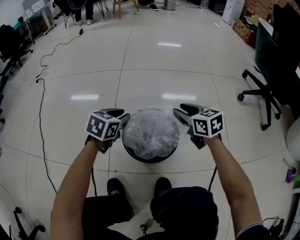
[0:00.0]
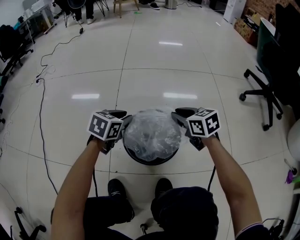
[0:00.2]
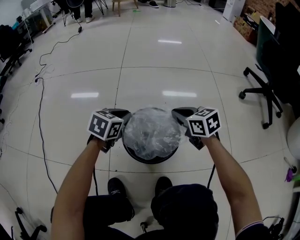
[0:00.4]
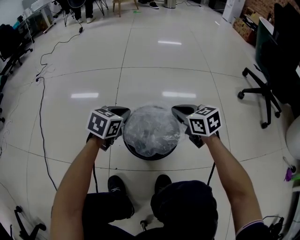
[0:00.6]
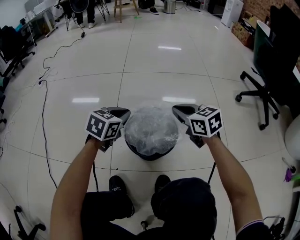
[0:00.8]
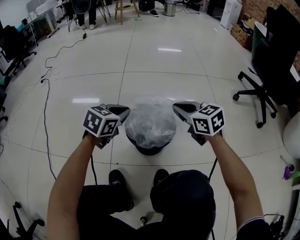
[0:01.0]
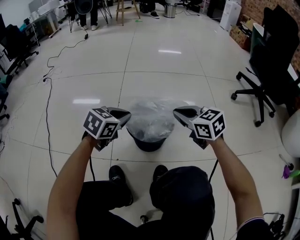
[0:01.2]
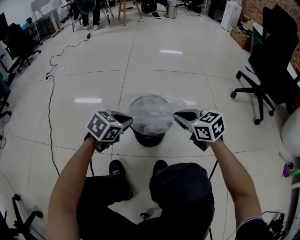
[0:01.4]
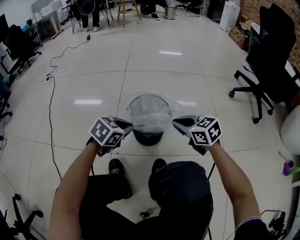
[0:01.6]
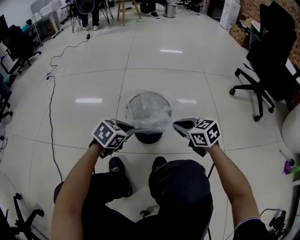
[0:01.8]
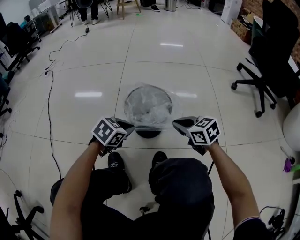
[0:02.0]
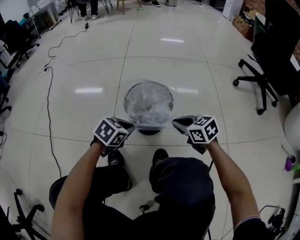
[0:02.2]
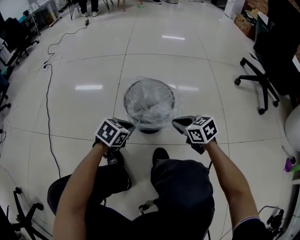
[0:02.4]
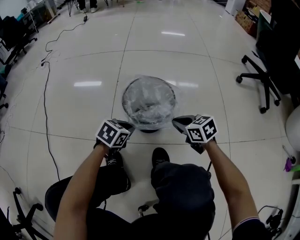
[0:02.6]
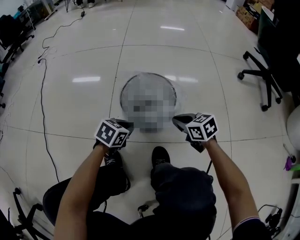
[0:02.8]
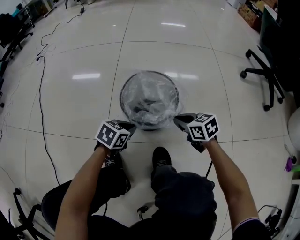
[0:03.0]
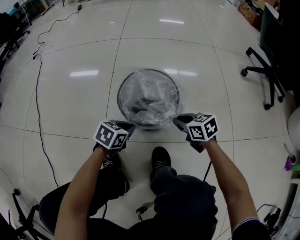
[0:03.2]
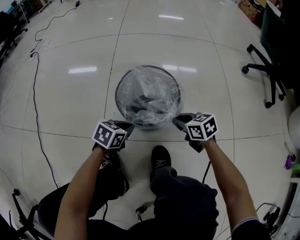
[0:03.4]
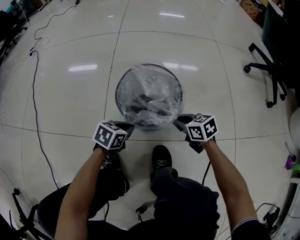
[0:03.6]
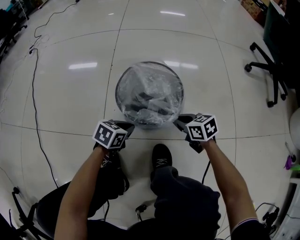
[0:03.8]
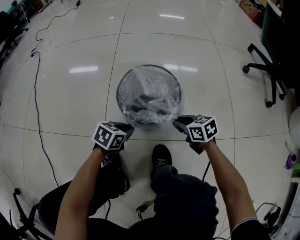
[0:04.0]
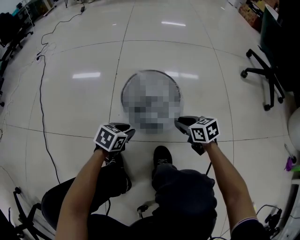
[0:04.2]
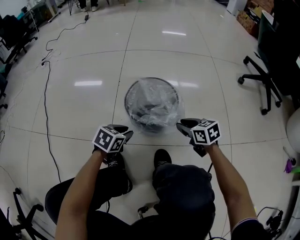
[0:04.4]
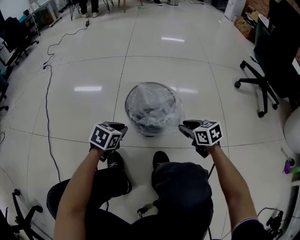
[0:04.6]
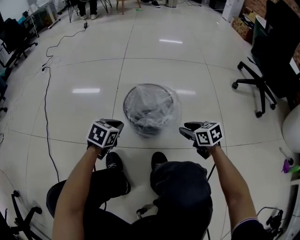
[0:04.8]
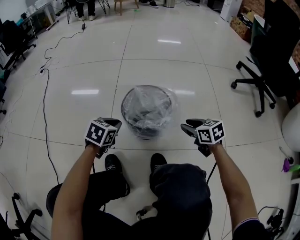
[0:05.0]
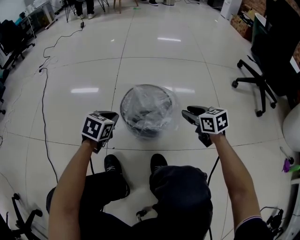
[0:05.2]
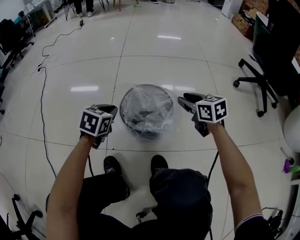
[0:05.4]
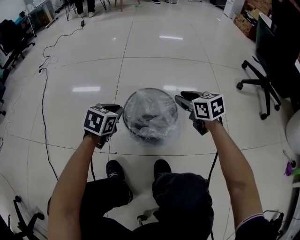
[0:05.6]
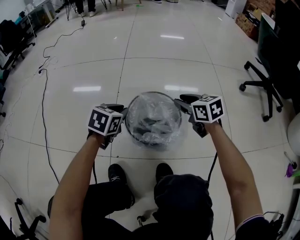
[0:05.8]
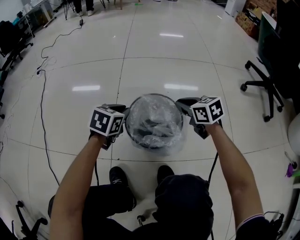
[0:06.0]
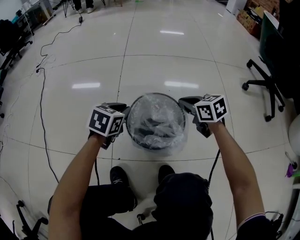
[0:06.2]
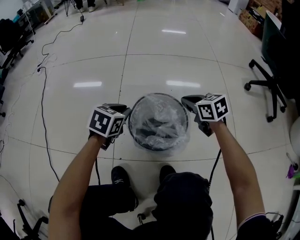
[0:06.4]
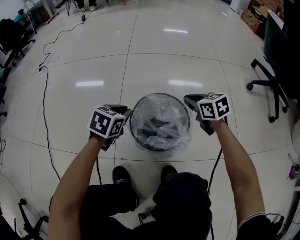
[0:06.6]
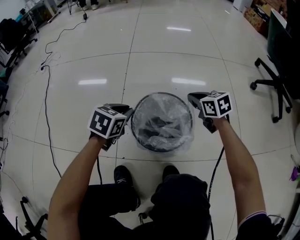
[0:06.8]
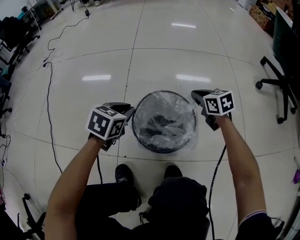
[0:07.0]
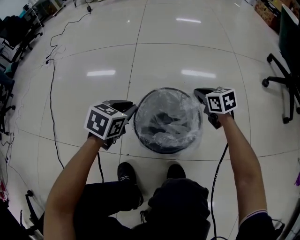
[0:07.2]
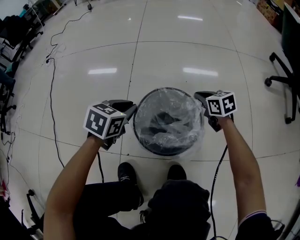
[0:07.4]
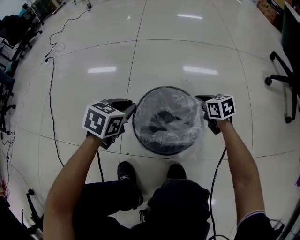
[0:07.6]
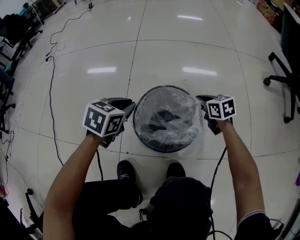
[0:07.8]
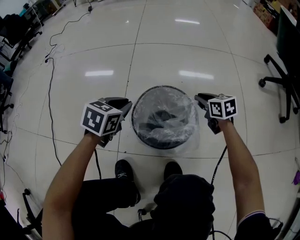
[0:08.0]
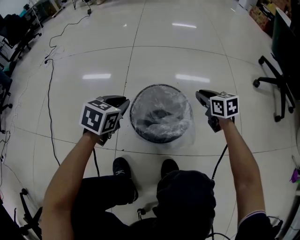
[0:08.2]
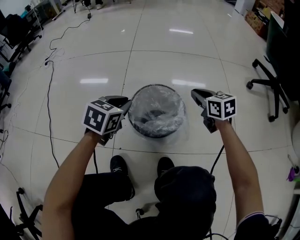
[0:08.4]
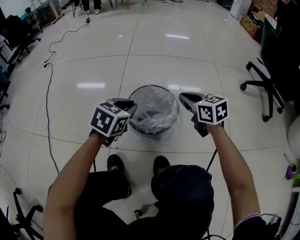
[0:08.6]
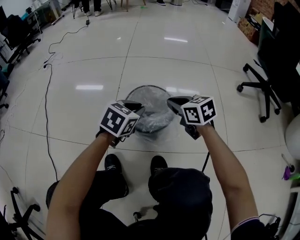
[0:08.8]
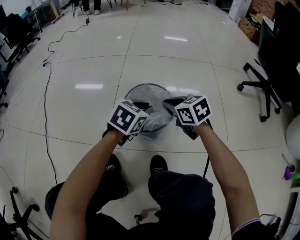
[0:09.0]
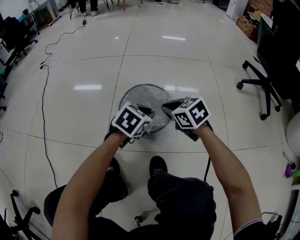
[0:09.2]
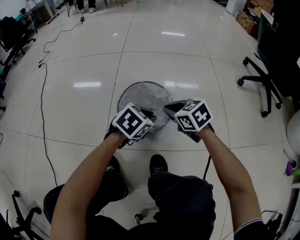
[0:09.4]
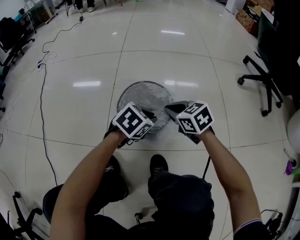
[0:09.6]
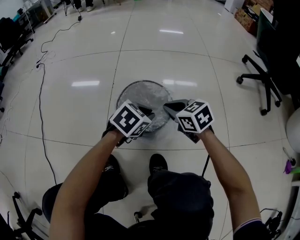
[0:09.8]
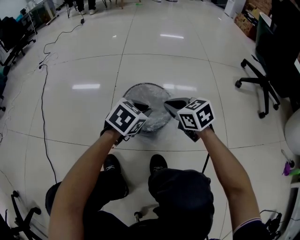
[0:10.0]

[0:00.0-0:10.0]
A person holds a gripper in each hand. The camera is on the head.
0:00.0 to 0:01.4: Both grippers travel together backward, roughly 15 cm. The left gripper closes its fingers. Meanwhile the right gripper closes.
0:01.4 to 0:02.8: The grippers both shift downward by some 15 cm.
0:02.8 to 0:04.2: The left gripper opens up; the right gripper opens its fingers.
0:04.2 to 0:05.8: The two grippers go roughly 20 cm forward and upward.
0:05.8 to 0:07.2: The right gripper moves downward and forward, some 10 cm, and closes its fingers.
0:07.2 to 0:08.6: The right gripper is displaced upward and backward by some 15 cm; the left gripper shifts some 10 cm backward, upward and to the right.
0:08.6 to 0:10.0: The right gripper moves roughly 5 cm. The left gripper shifts approximately 10 cm to the right.

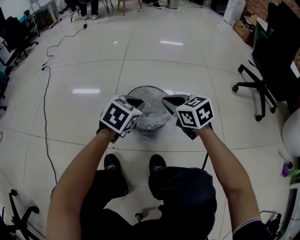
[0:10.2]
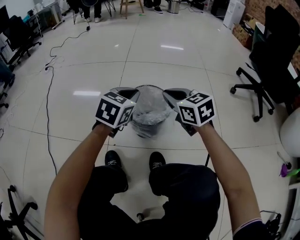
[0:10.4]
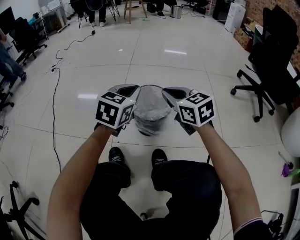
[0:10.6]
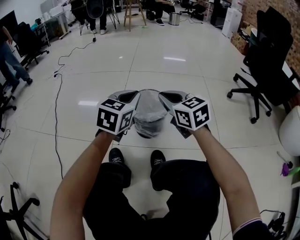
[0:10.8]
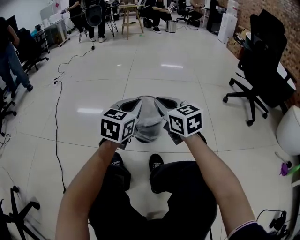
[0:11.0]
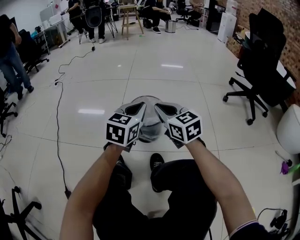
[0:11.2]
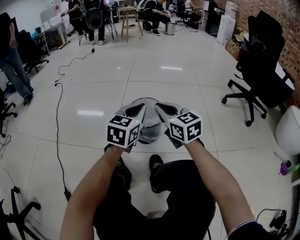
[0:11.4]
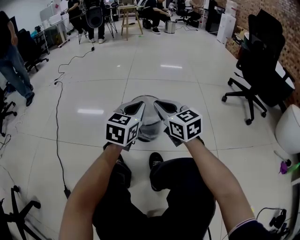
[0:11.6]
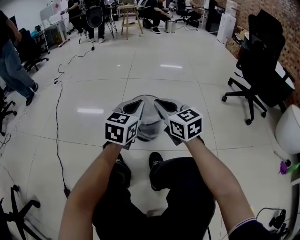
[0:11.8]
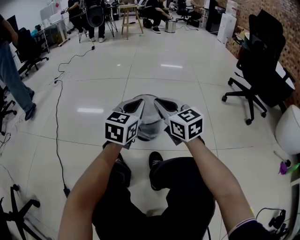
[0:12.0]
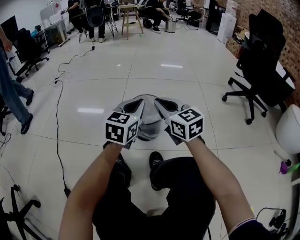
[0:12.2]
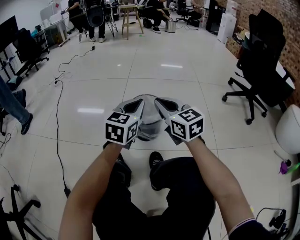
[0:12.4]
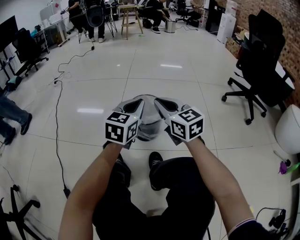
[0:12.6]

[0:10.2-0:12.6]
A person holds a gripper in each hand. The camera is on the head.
0:10.2 to 0:11.4: Both grippers move upward and backward, approximately 20 cm. The left gripper rotates roughly 30 degrees; the right gripper changes its angle by roughly 20 degrees.
0:11.4 to 0:12.6: The grippers make only small movements.

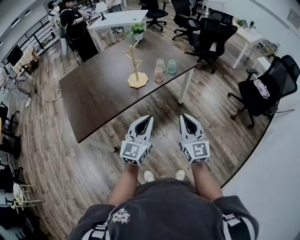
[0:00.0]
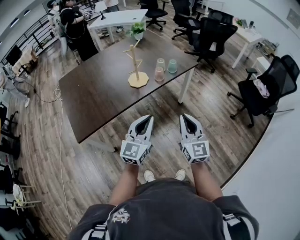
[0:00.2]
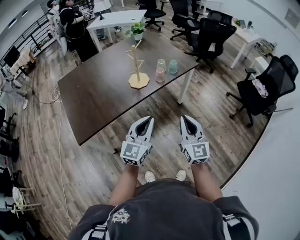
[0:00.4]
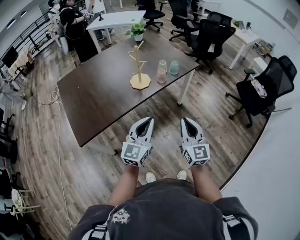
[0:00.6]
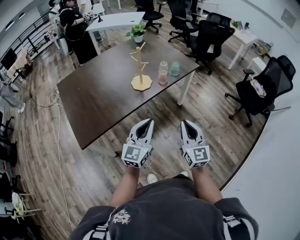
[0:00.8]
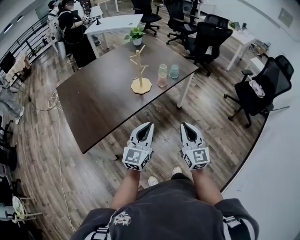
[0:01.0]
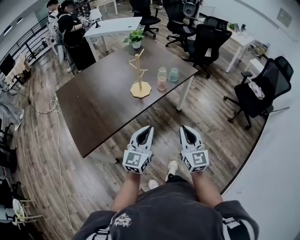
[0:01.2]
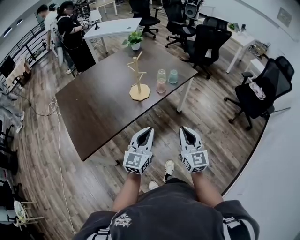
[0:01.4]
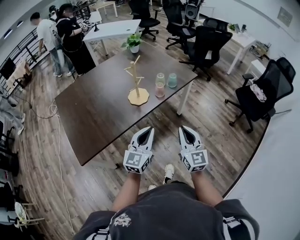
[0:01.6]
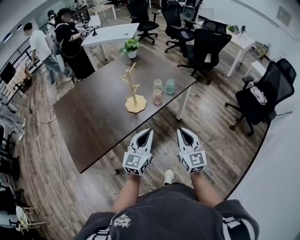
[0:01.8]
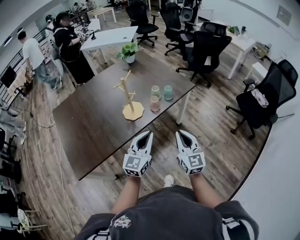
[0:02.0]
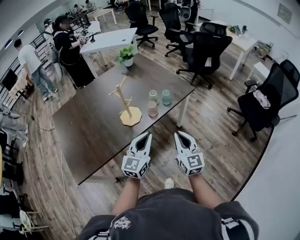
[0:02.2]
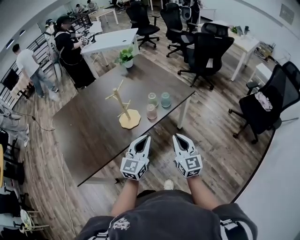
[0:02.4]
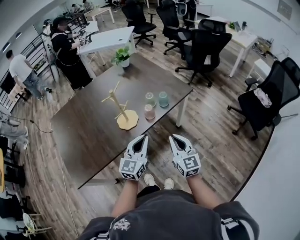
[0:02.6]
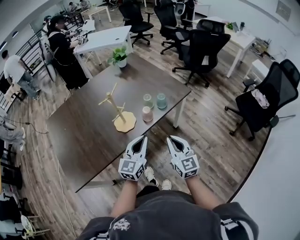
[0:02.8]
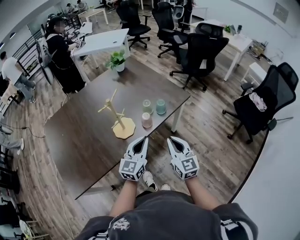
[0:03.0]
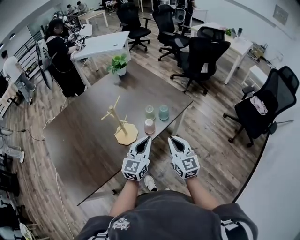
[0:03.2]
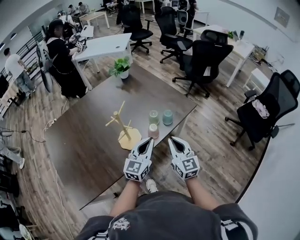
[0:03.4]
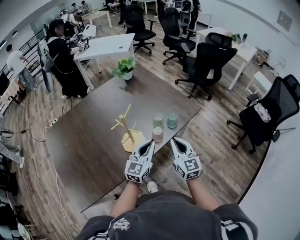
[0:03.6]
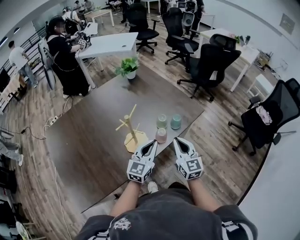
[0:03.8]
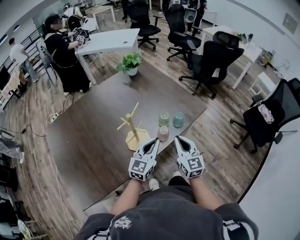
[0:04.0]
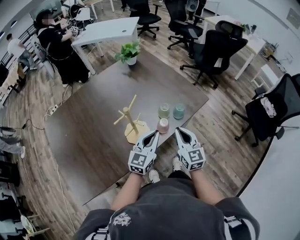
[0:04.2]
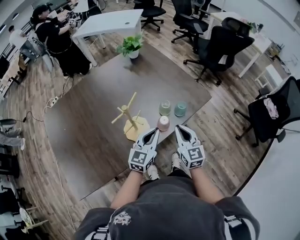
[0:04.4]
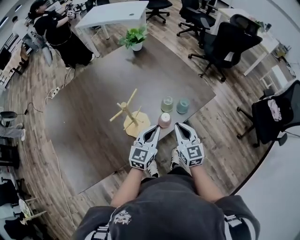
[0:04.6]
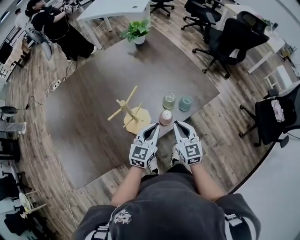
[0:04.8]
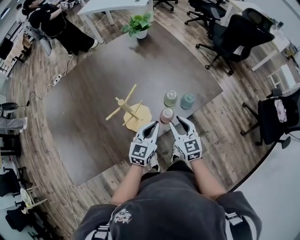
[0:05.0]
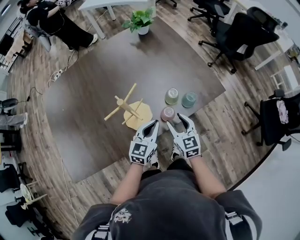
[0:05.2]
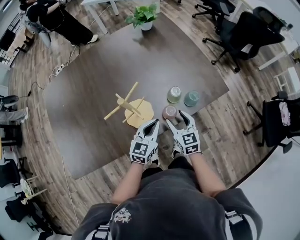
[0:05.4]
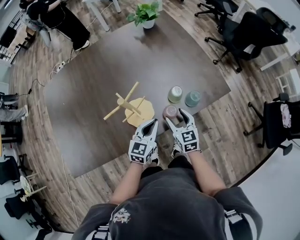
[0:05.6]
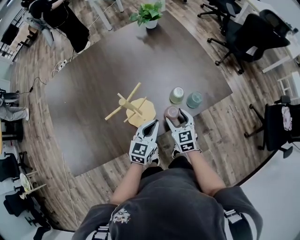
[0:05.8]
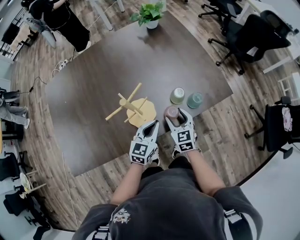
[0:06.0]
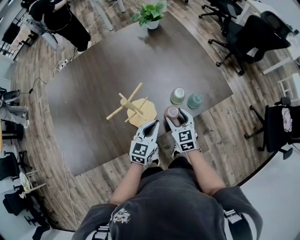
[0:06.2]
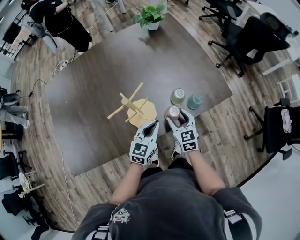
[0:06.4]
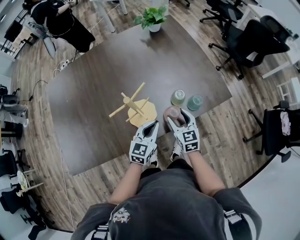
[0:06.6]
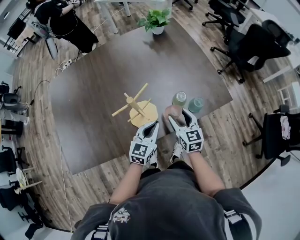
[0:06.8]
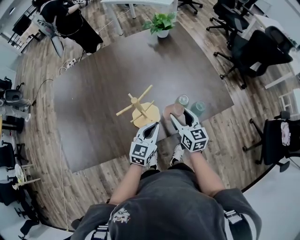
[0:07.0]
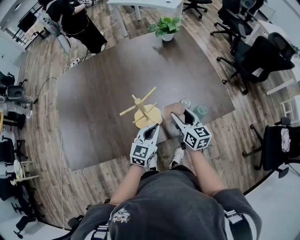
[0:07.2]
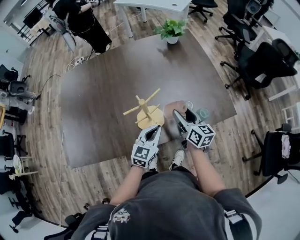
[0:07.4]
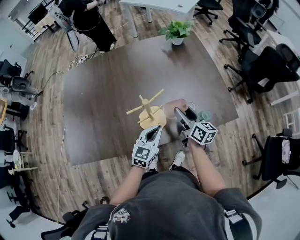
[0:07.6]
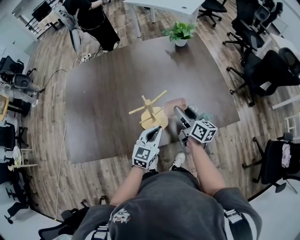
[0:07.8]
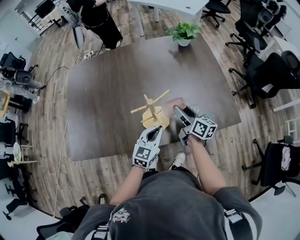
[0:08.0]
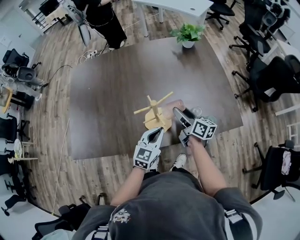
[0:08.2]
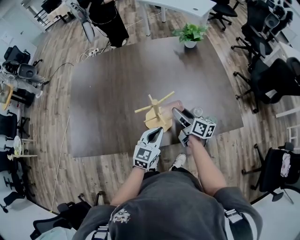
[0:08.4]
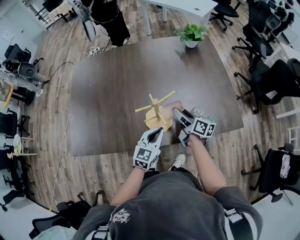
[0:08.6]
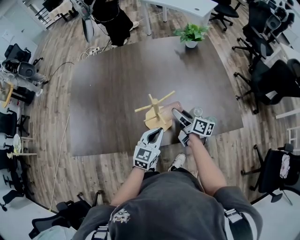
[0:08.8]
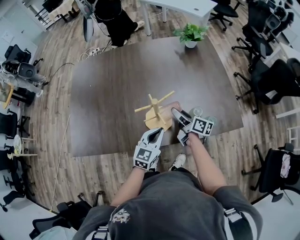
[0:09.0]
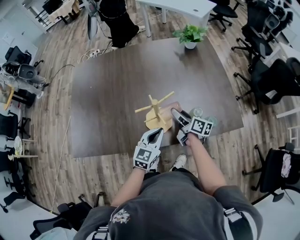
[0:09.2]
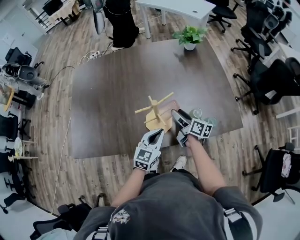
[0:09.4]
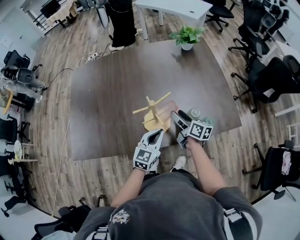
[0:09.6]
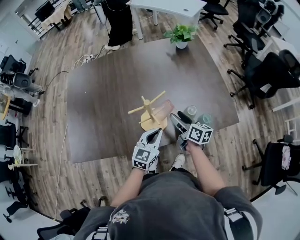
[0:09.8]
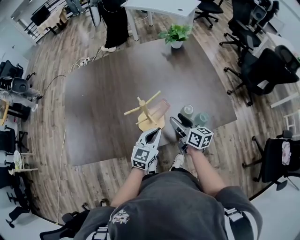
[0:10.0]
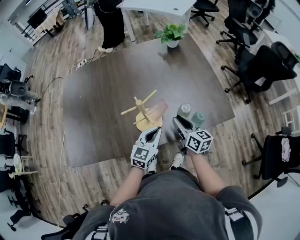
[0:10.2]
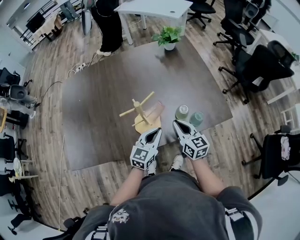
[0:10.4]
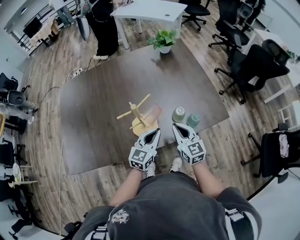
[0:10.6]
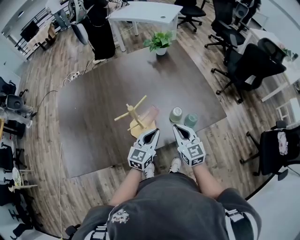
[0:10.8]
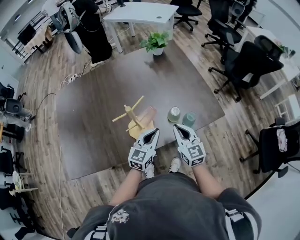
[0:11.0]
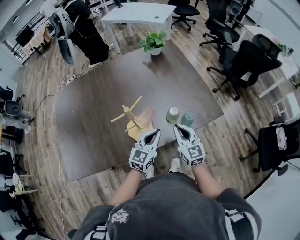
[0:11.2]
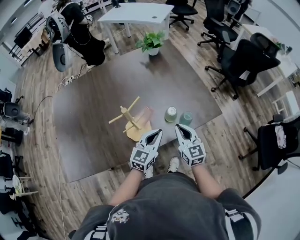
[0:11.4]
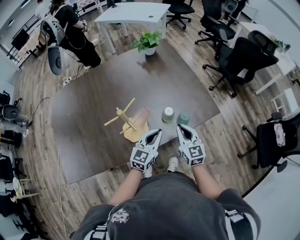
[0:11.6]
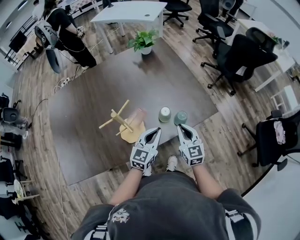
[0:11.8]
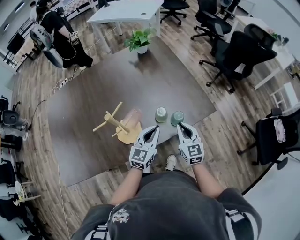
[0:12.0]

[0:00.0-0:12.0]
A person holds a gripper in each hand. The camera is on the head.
0:00.0 to 0:01.6: The two grippers go some 5 cm forward.
0:01.6 to 0:03.0: The grippers both shift forward by approximately 20 cm.
0:03.0 to 0:04.4: The left gripper is displaced forward, to the left and downward by roughly 15 cm; the right gripper shifts about 15 cm forward and to the left.
0:04.4 to 0:06.0: The right gripper shifts about 15 cm downward and forward, turns by roughly 20 degrees, and opens; the left gripper moves downward, about 10 cm.
0:06.0 to 0:07.6: The left gripper shifts by roughly 5 cm; the right gripper heads upward and forward, covering some 15 cm, and changes its angle by roughly 50 degrees.
0:07.6 to 0:09.0: The right gripper goes roughly 10 cm downward and to the left, and swivels about 20 degrees.
0:09.0 to 0:10.4: The left gripper shifts by some 5 cm. Meanwhile the right gripper heads backward, to the right and upward, covering roughly 10 cm, rotates approximately 40 degrees, and closes up.
0:10.4 to 0:12.0: The grippers both shift to the right by some 10 cm. The right gripper rotates roughly 20 degrees.
